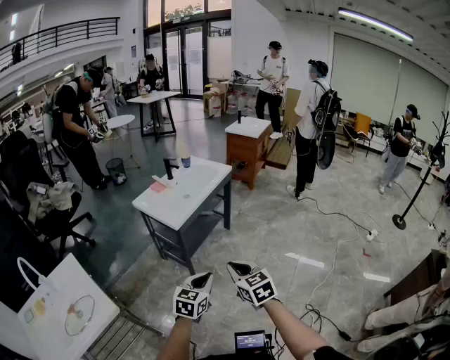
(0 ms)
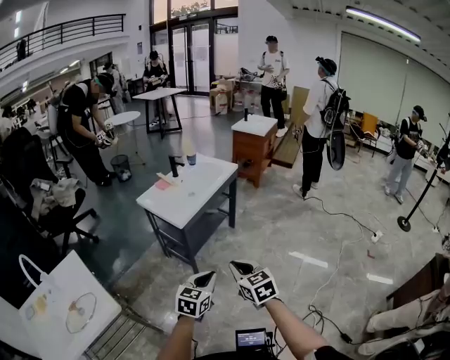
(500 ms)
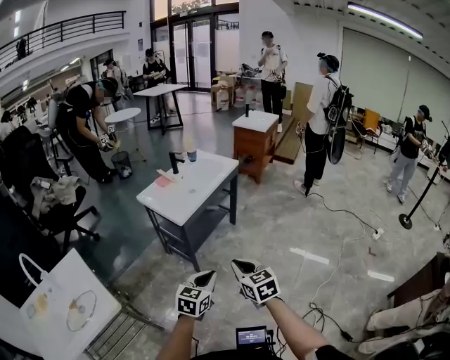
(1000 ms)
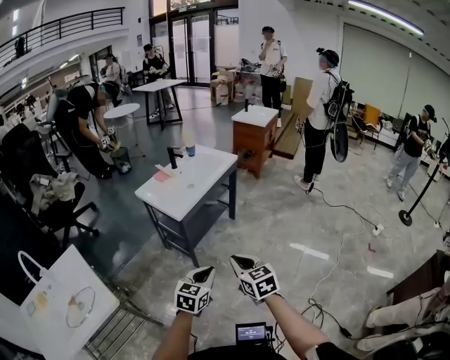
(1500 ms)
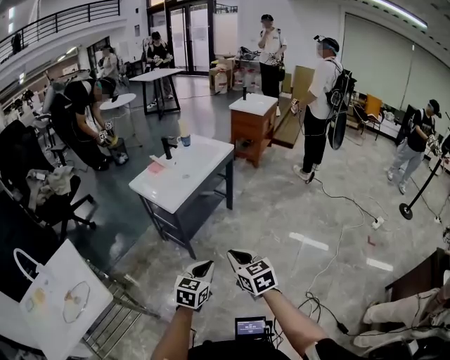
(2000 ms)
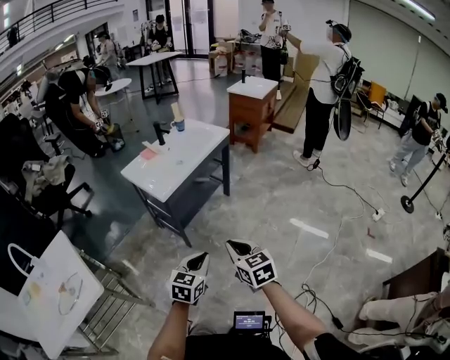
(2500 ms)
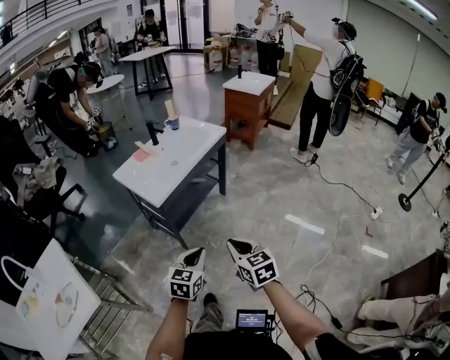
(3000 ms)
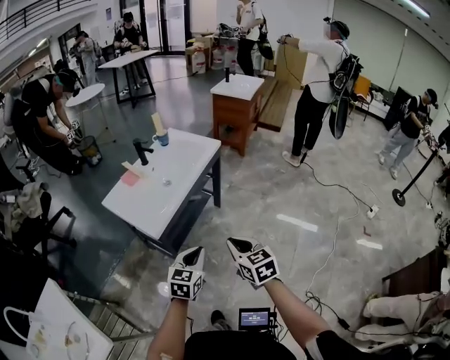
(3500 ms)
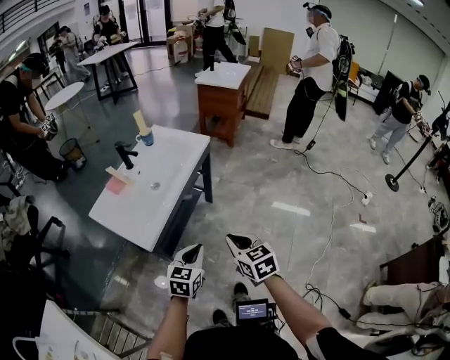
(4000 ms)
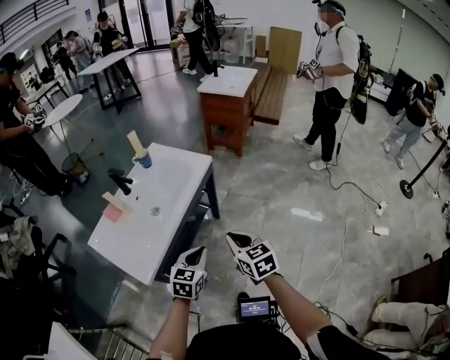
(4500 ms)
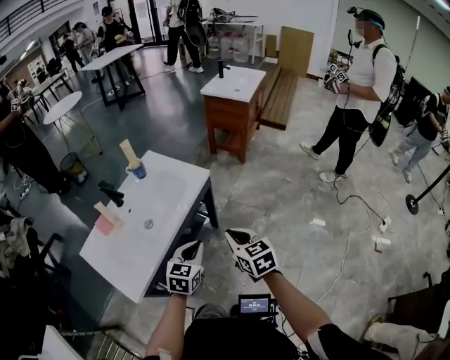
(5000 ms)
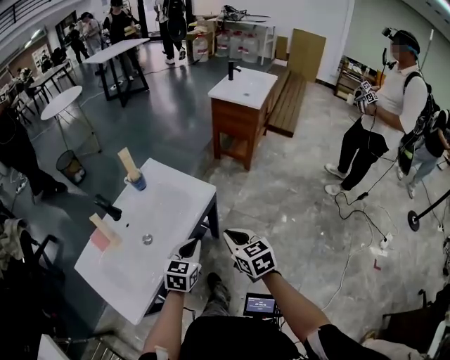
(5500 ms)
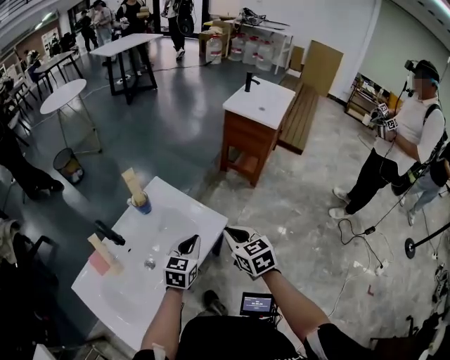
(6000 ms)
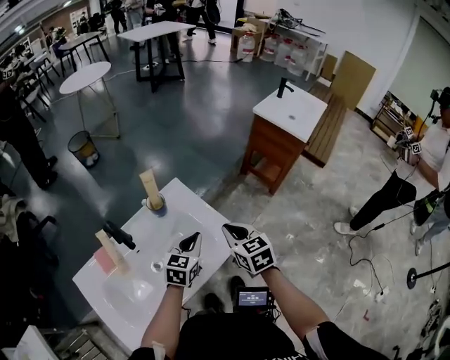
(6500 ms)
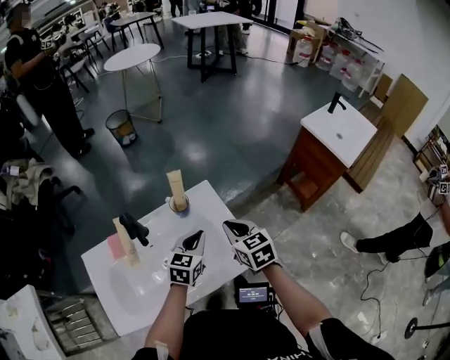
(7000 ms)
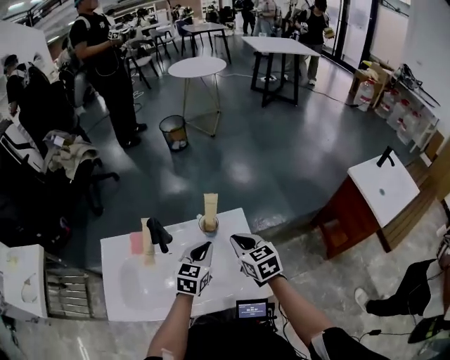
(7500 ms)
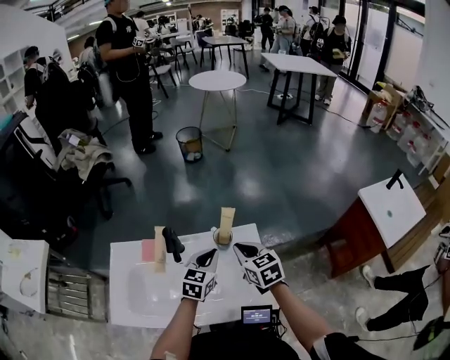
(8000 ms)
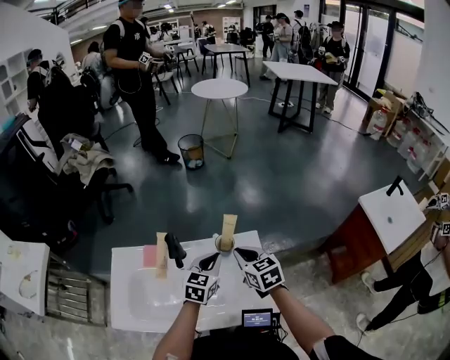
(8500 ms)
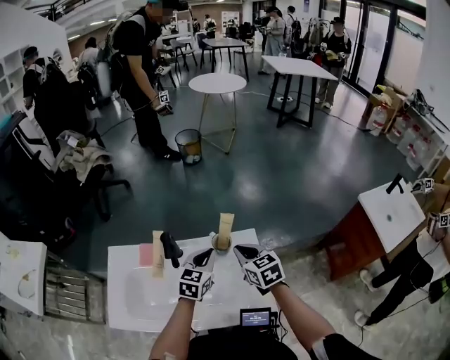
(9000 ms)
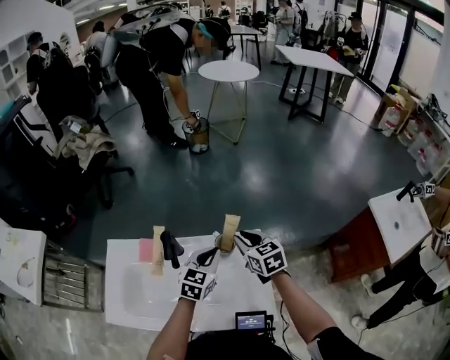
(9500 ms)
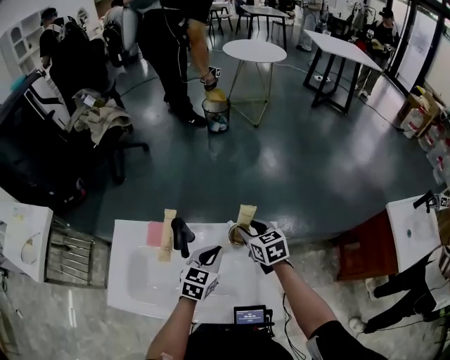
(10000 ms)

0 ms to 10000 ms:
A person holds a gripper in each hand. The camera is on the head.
0 ms to 2000 ms: The left gripper ends up approximately 5 cm from where it was. Meanwhile the right gripper changes place by some 5 cm.
2000 ms to 4000 ms: Both grippers travel together forward, approximately 30 cm.
4000 ms to 6000 ms: The two grippers travel together, forward, some 50 cm.
6000 ms to 8000 ms: The left gripper changes place by approximately 25 cm, and swivels roughly 40 degrees. The right gripper ends up roughly 30 cm from where it was, and changes its angle by approximately 50 degrees.
8000 ms to 10000 ms: The right gripper shifts approximately 15 cm forward and downward, and opens, while the left gripper moves approximately 5 cm.

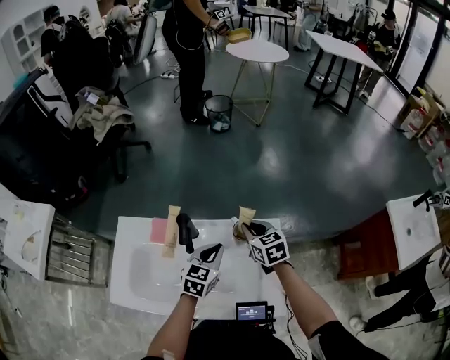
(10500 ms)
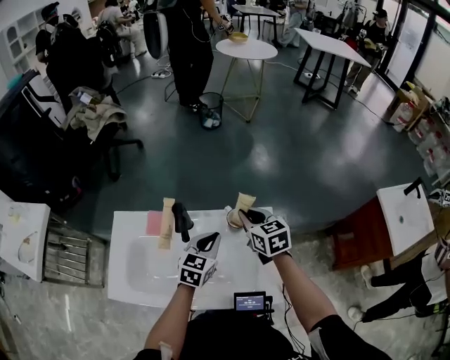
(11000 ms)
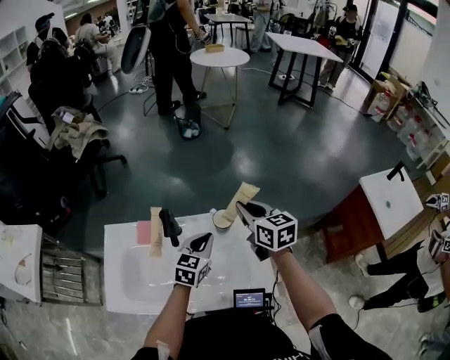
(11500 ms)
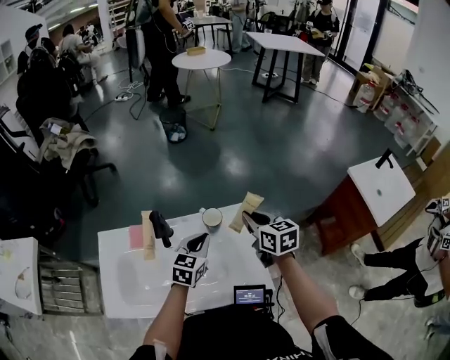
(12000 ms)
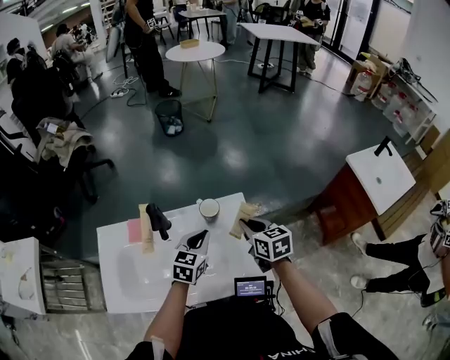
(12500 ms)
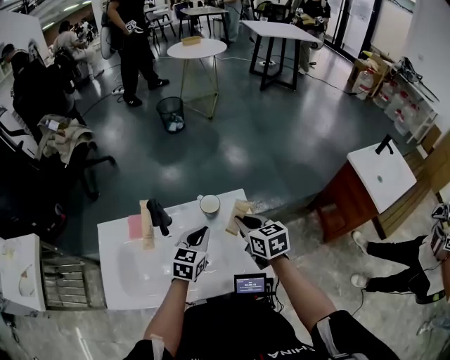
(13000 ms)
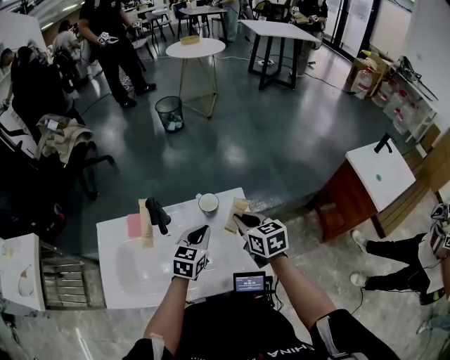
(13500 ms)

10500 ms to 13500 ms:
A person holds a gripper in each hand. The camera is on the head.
10500 ms to 12000 ms: The right gripper moves to the right, upward and backward, roughly 15 cm, and rotates about 20 degrees. The left gripper moves some 5 cm.
12000 ms to 13500 ms: The right gripper shifts by approximately 5 cm.

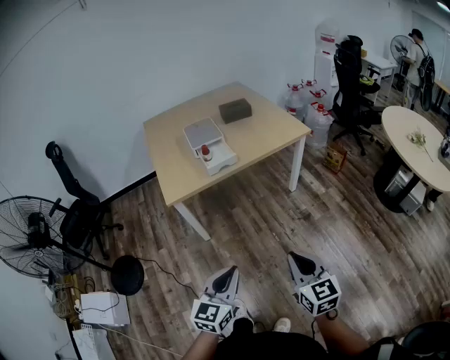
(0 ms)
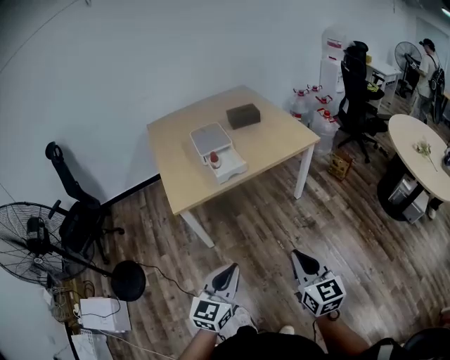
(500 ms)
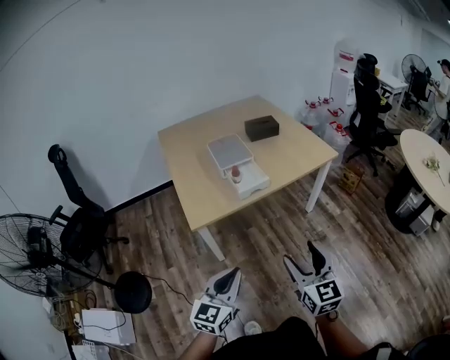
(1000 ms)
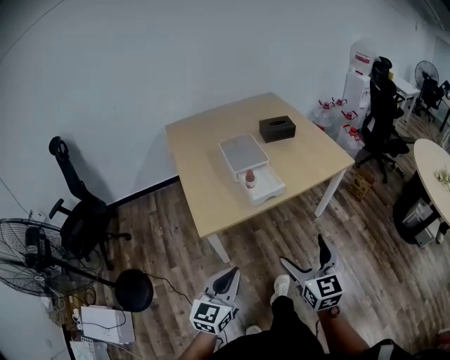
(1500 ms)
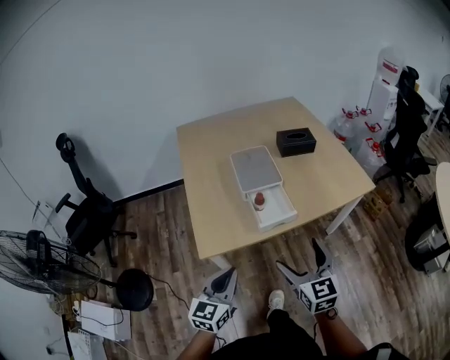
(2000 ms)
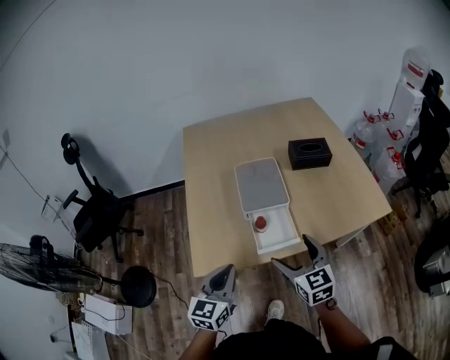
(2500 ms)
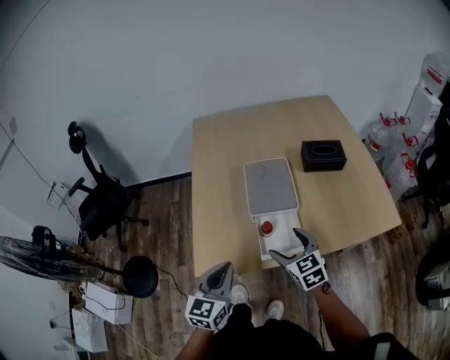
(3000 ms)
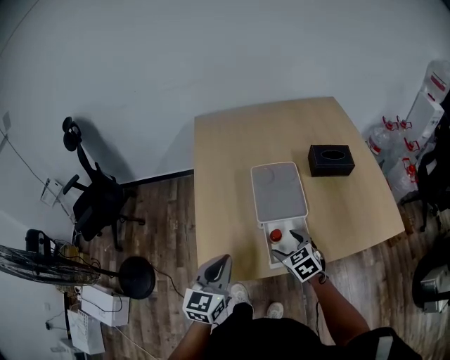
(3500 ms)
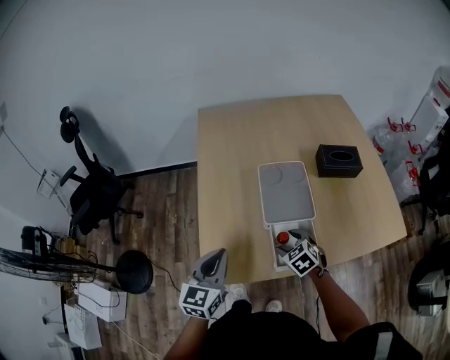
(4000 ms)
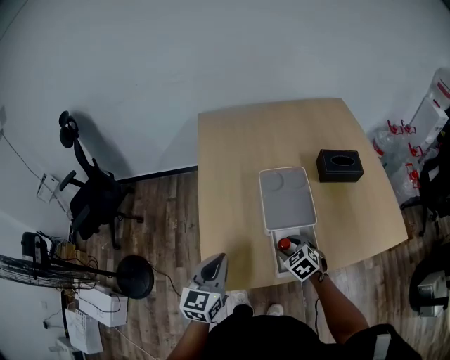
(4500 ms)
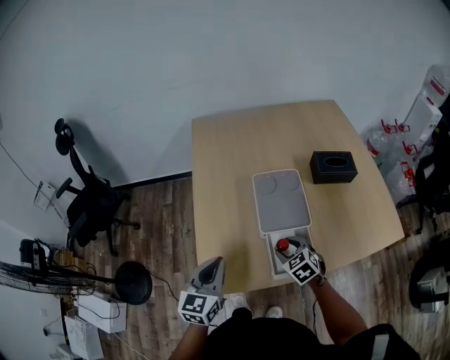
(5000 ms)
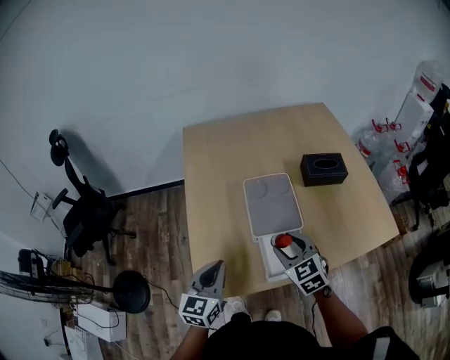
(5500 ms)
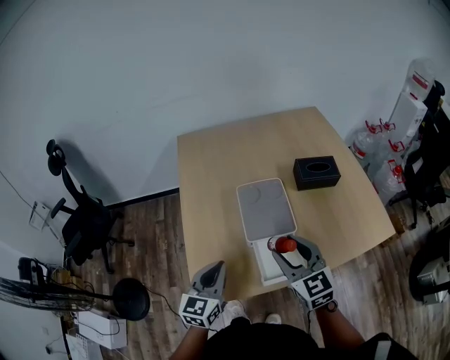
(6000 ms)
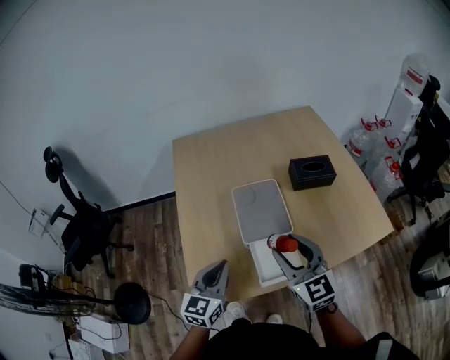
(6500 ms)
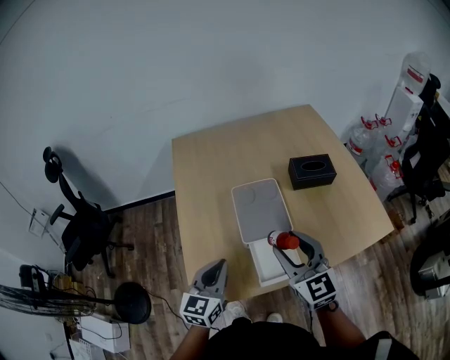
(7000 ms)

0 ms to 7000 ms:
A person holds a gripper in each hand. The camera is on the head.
0 ms to 2000 ms: Both grippers travel together forward and to the left, approximately 40 cm. The right gripper opens its fingers.
2000 ms to 3500 ms: The right gripper is displaced forward and downward by roughly 30 cm, and points its fingers about 30 degrees further downward, while the left gripper goes roughly 20 cm forward.
3500 ms to 5000 ms: The left gripper ends up roughly 5 cm from where it was.
5000 ms to 7000 ms: The left gripper shifts roughly 5 cm to the right, while the right gripper goes about 25 cm upward, and points its fingers approximately 40 degrees further upward.

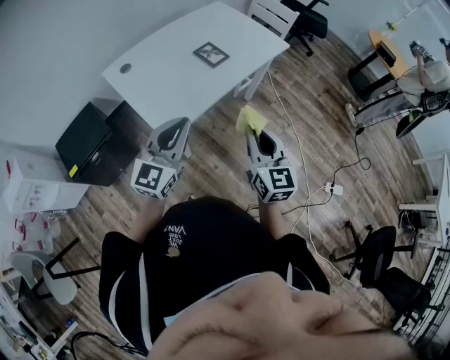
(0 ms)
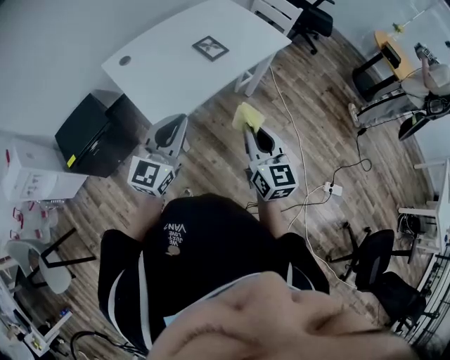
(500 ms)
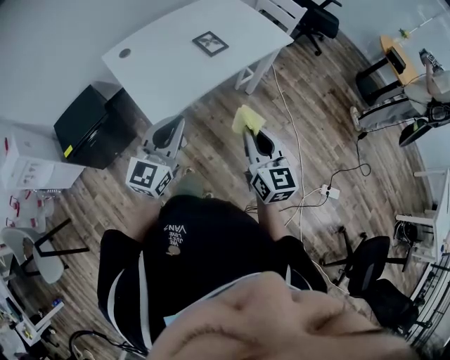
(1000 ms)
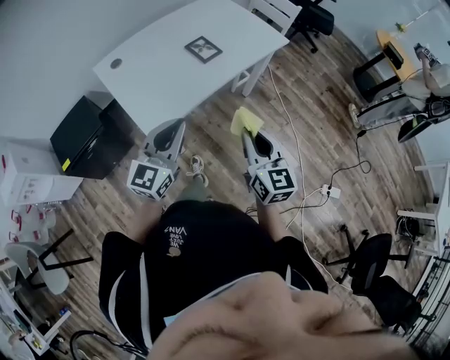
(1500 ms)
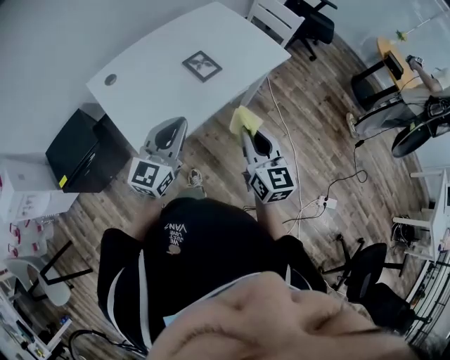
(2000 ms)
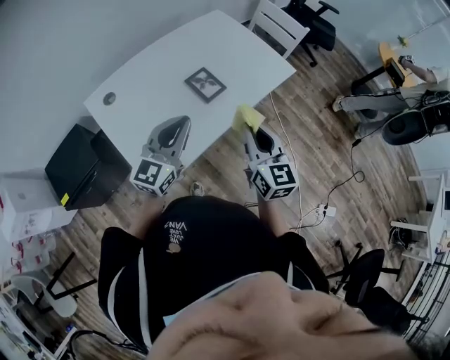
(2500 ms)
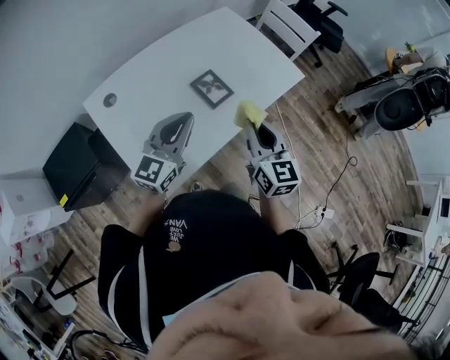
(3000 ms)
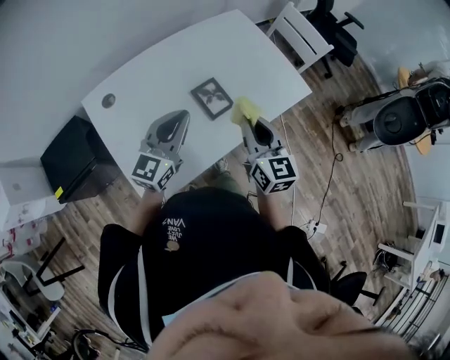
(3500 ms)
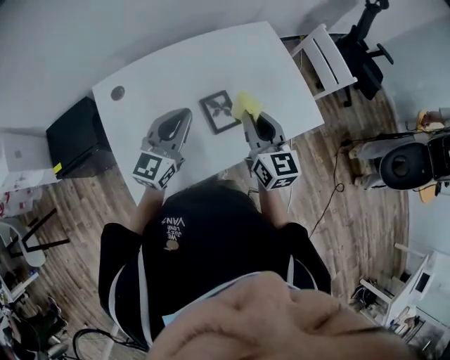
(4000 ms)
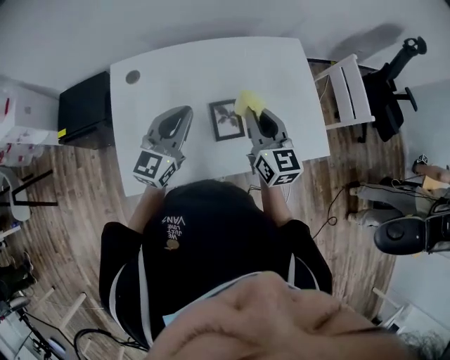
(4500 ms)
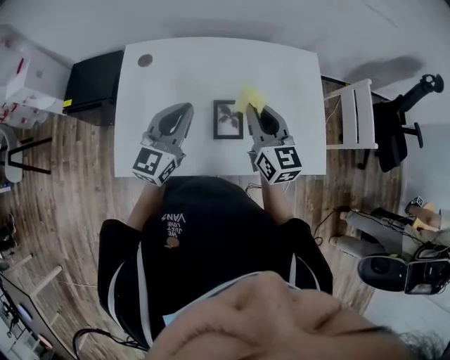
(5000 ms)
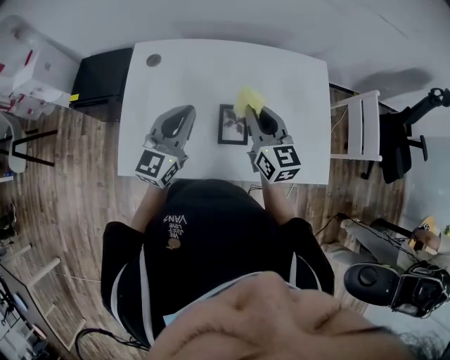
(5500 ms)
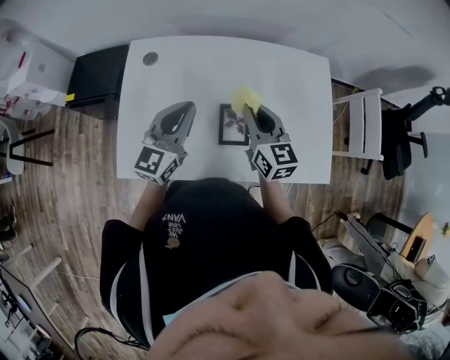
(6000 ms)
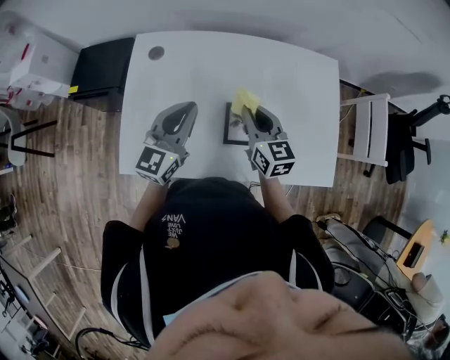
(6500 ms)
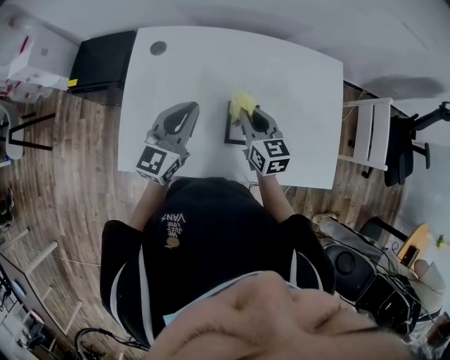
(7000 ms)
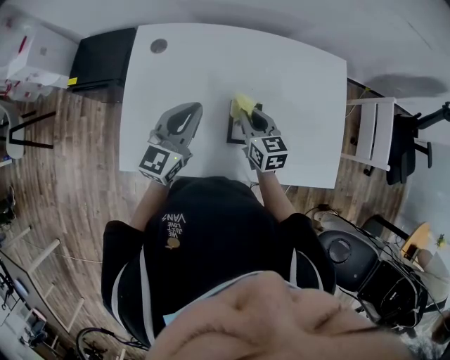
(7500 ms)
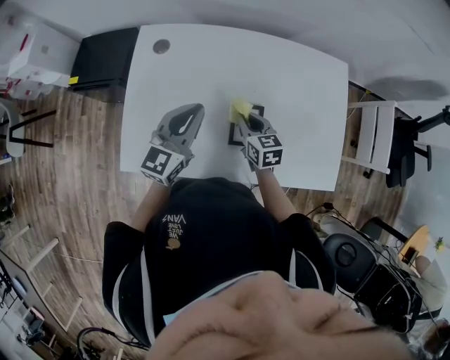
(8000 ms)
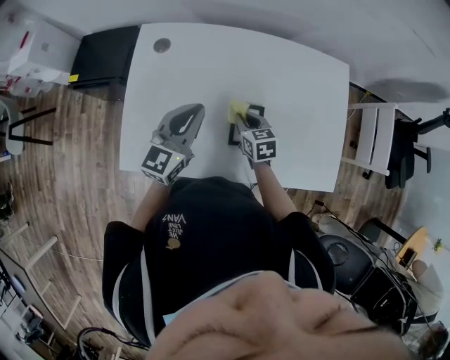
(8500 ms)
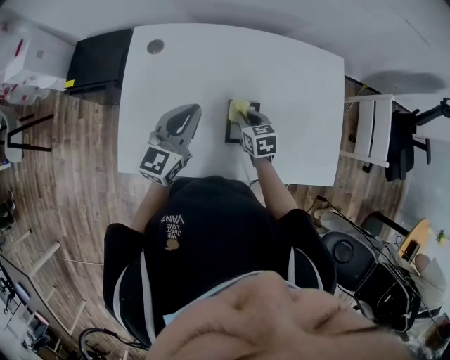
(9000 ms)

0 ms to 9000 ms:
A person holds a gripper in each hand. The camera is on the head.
0 ms to 2000 ms: Both grippers move forward, about 15 cm.
2000 ms to 4500 ms: The left gripper changes place by about 30 cm, and turns by some 30 degrees; the right gripper ends up approximately 40 cm from where it was, and turns by roughly 30 degrees.
4500 ms to 7000 ms: The right gripper moves downward, forward and to the left, roughly 15 cm, and rotates roughly 20 degrees. Meanwhile the left gripper shifts by roughly 5 cm.
7000 ms to 9000 ms: The right gripper shifts approximately 10 cm downward, and swivels approximately 20 degrees.
